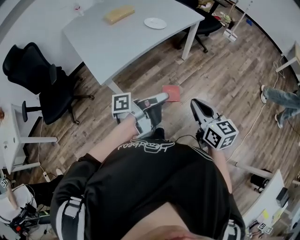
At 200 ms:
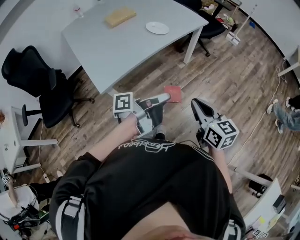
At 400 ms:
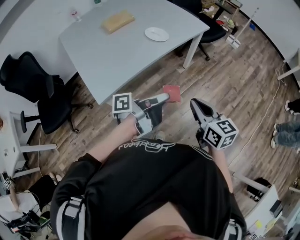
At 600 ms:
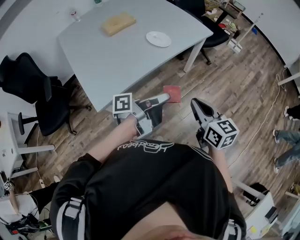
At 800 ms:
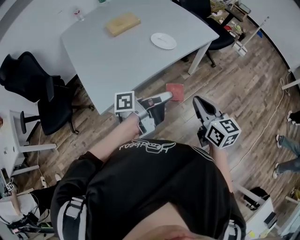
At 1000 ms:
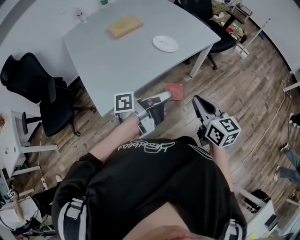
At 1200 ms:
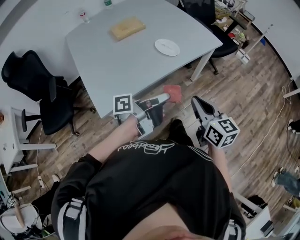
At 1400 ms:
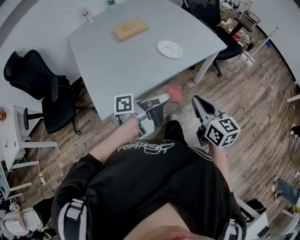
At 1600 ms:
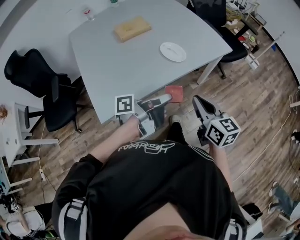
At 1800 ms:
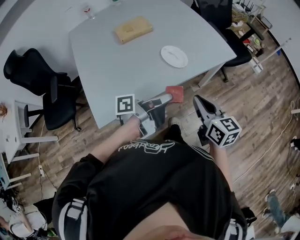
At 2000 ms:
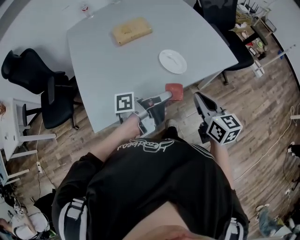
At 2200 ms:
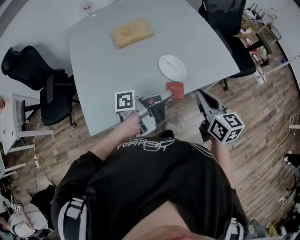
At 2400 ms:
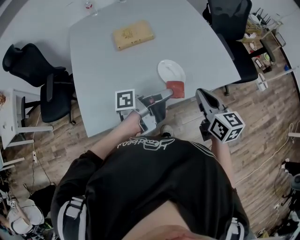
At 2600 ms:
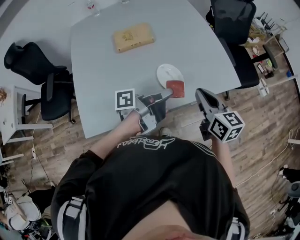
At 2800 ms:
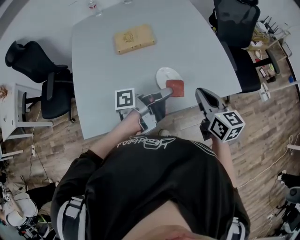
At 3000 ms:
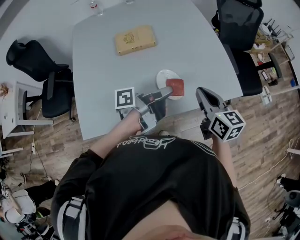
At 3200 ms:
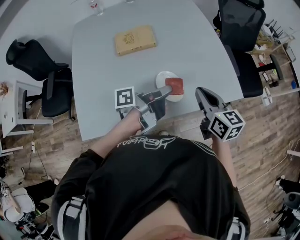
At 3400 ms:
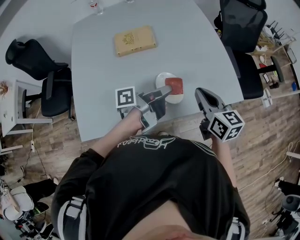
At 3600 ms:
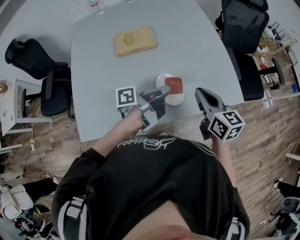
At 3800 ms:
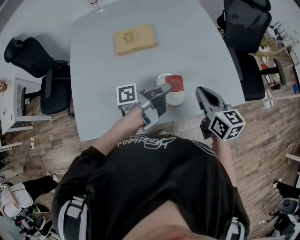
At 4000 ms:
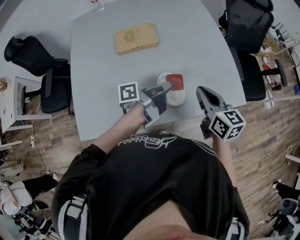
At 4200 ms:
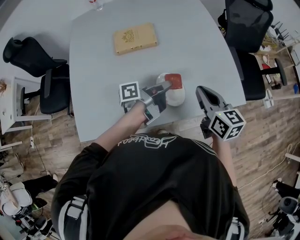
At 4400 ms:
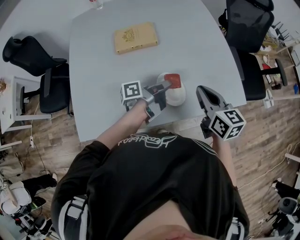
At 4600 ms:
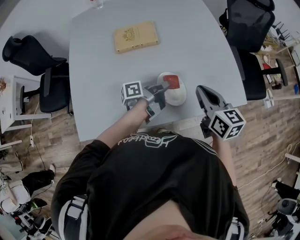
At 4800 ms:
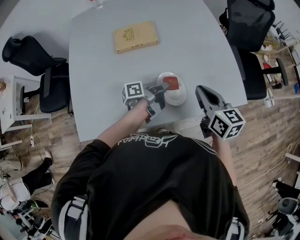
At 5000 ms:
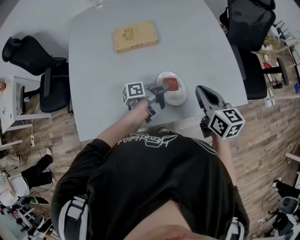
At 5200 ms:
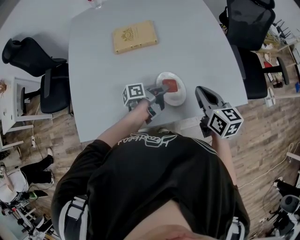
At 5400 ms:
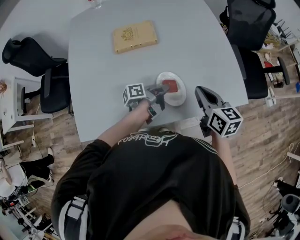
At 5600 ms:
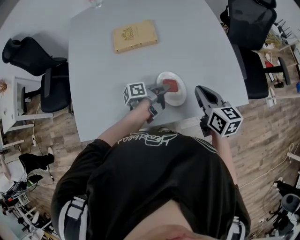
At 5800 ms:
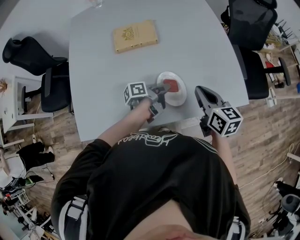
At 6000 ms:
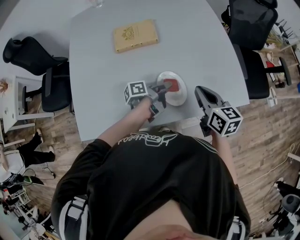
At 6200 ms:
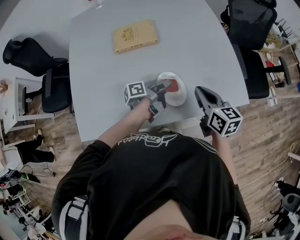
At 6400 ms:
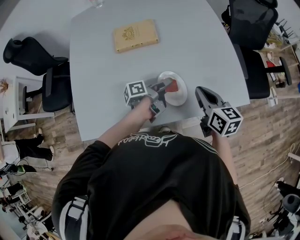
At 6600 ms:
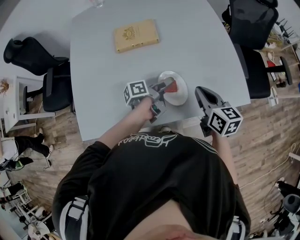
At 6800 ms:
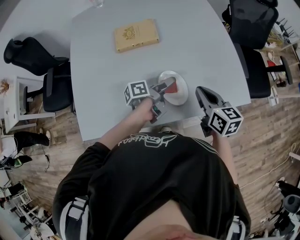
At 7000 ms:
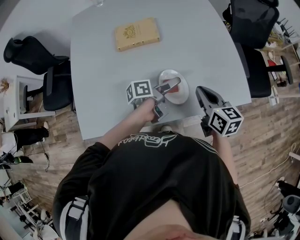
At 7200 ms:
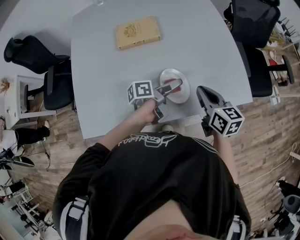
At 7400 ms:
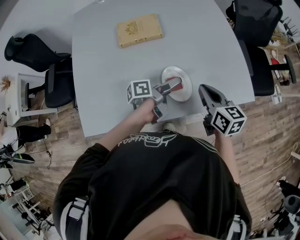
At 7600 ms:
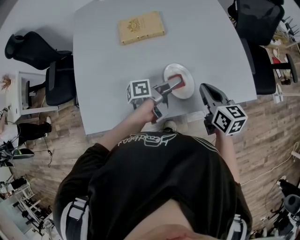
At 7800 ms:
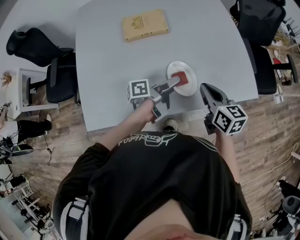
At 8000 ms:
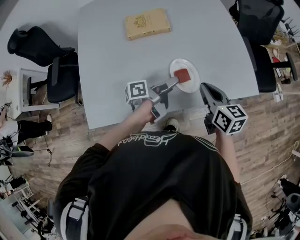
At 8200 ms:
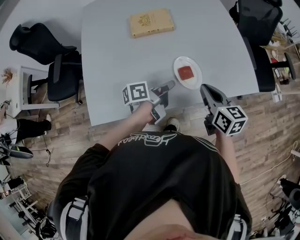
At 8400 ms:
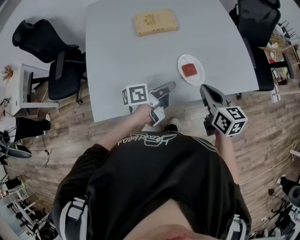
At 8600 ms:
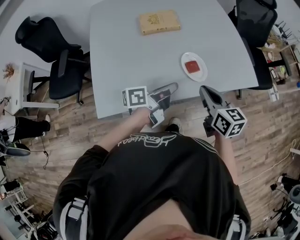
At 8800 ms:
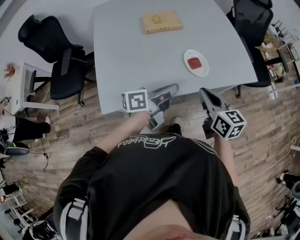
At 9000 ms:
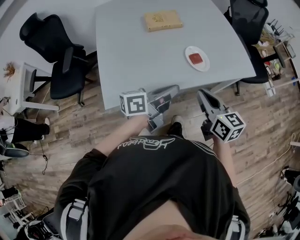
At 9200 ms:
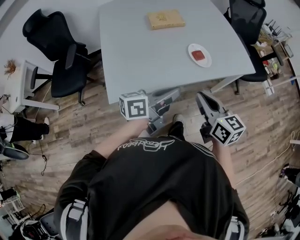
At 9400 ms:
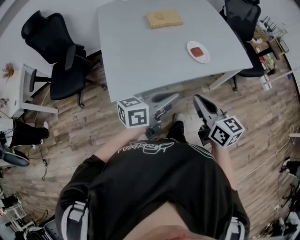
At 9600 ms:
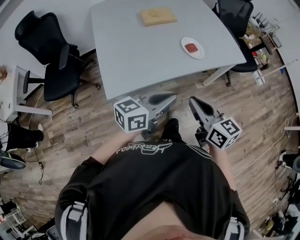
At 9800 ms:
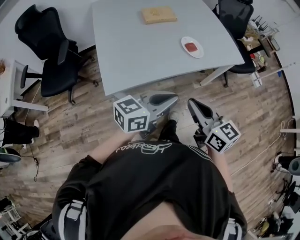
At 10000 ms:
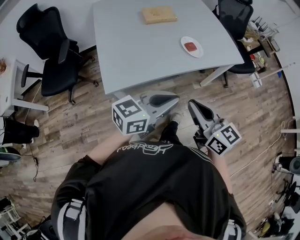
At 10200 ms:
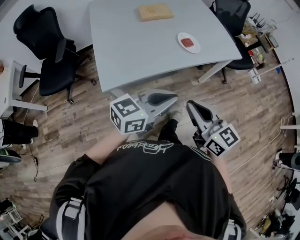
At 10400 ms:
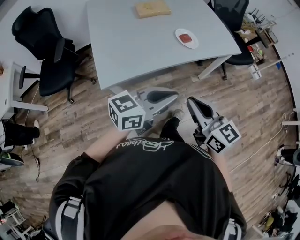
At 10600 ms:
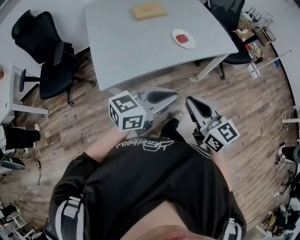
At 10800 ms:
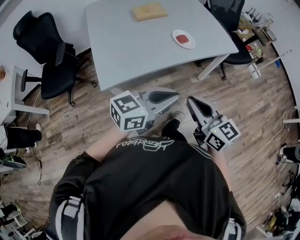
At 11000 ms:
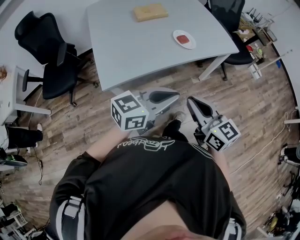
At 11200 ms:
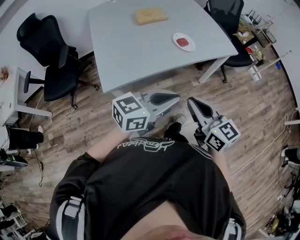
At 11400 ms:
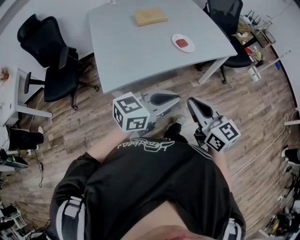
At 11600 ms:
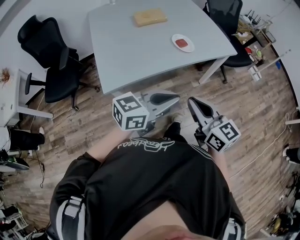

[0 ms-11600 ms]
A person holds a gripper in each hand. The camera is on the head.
0 ms to 1400 ms: The right gripper moves roughly 30 cm.
1400 ms to 2800 ms: The right gripper ends up roughly 30 cm from where it was.
2800 ms to 4400 ms: The right gripper shifts by some 10 cm.
7200 ms to 8800 ms: The right gripper ends up approximately 20 cm from where it was.
8800 ms to 10200 ms: The right gripper ends up roughly 25 cm from where it was.
